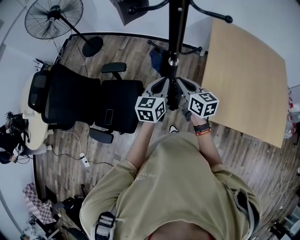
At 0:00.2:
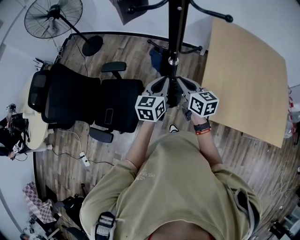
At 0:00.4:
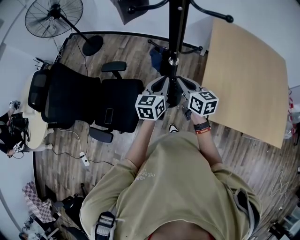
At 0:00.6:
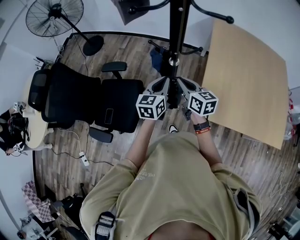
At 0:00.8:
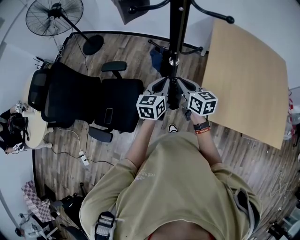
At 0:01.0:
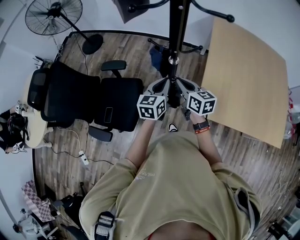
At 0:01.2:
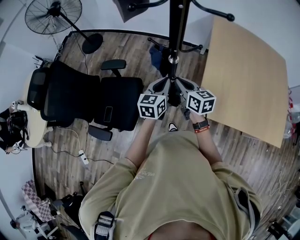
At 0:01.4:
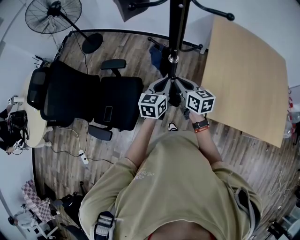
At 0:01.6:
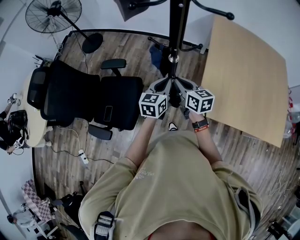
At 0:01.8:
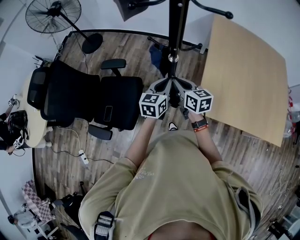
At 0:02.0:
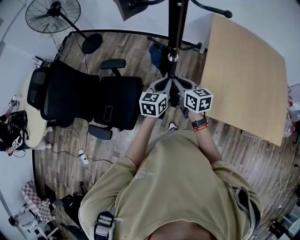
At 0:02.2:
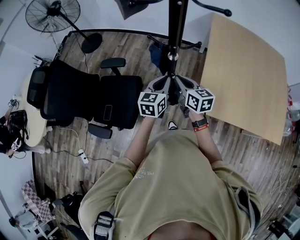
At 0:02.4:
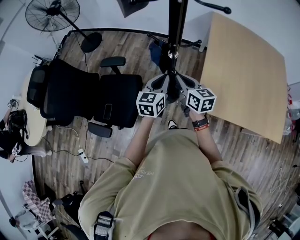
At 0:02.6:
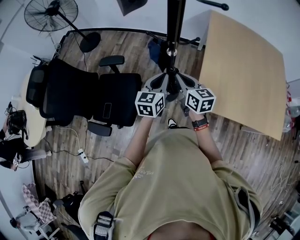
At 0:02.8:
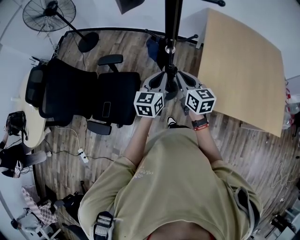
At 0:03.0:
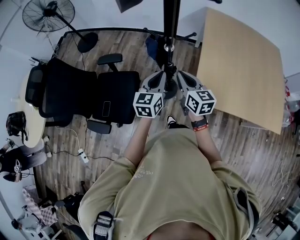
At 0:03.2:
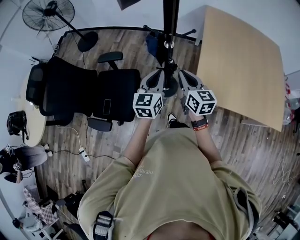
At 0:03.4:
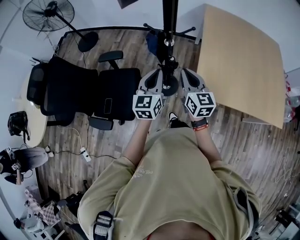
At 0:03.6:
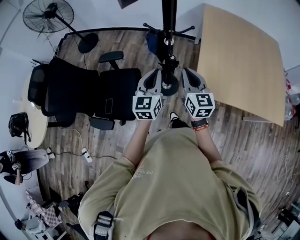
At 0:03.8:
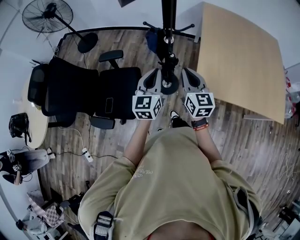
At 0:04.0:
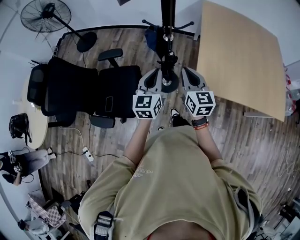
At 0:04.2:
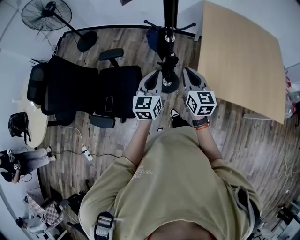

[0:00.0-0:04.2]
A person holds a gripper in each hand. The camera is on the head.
0:00.0 to 0:01.4: The grippers move only a little.
0:01.4 to 0:02.8: The left gripper changes place by roughly 5 cm; the right gripper moves about 5 cm.
0:02.8 to 0:04.2: The grippers both shift backward by about 10 cm.

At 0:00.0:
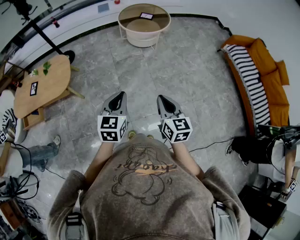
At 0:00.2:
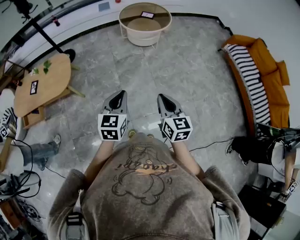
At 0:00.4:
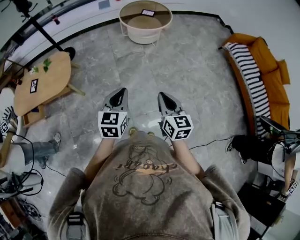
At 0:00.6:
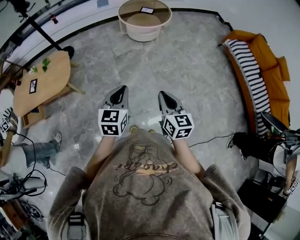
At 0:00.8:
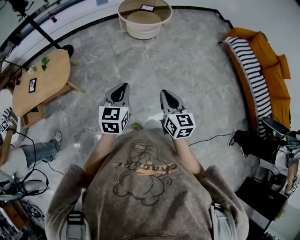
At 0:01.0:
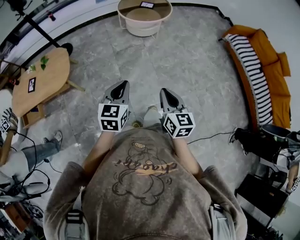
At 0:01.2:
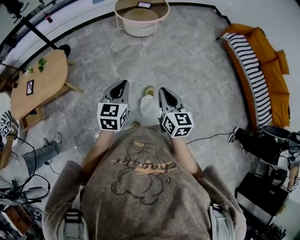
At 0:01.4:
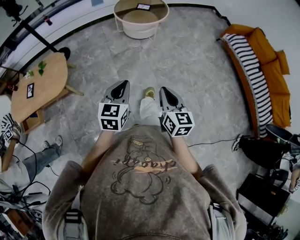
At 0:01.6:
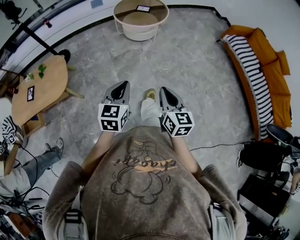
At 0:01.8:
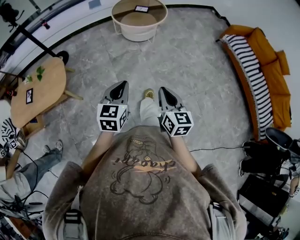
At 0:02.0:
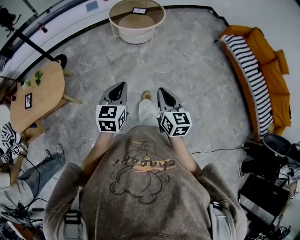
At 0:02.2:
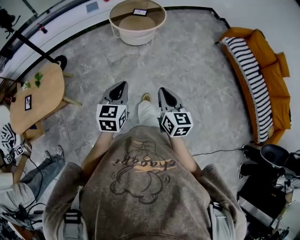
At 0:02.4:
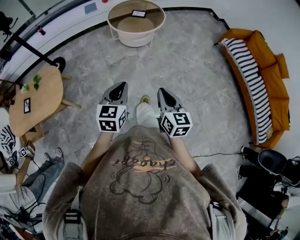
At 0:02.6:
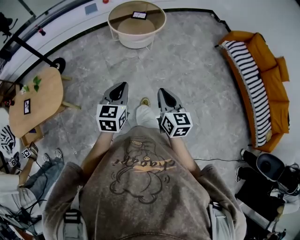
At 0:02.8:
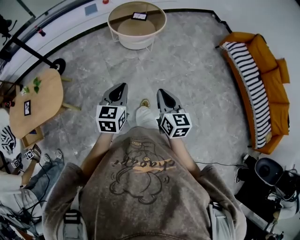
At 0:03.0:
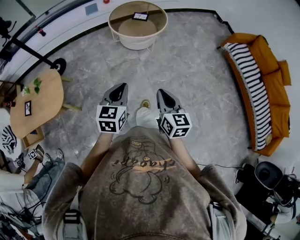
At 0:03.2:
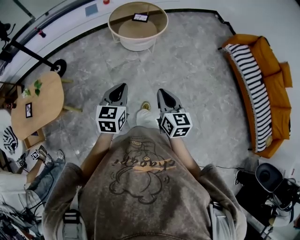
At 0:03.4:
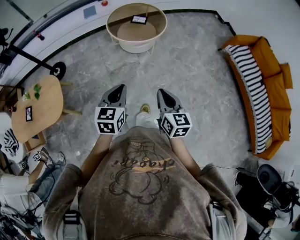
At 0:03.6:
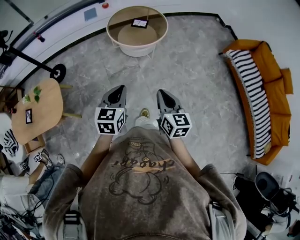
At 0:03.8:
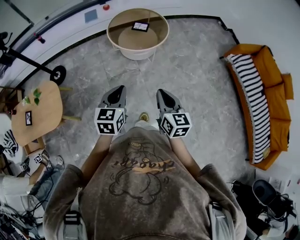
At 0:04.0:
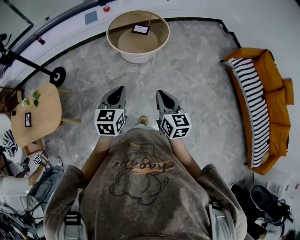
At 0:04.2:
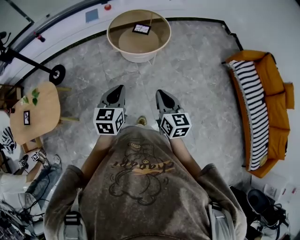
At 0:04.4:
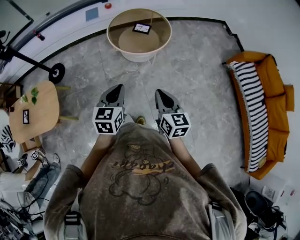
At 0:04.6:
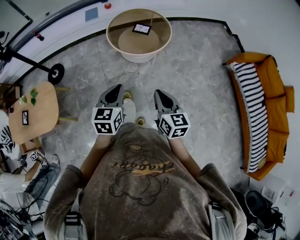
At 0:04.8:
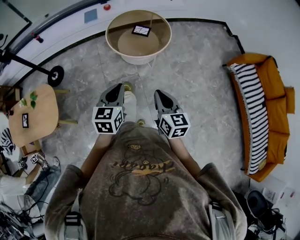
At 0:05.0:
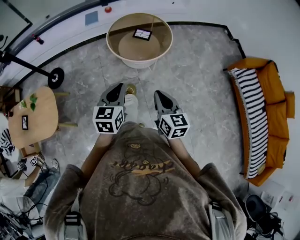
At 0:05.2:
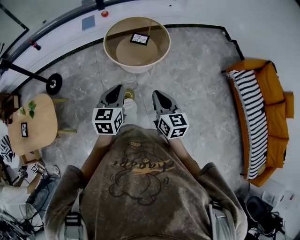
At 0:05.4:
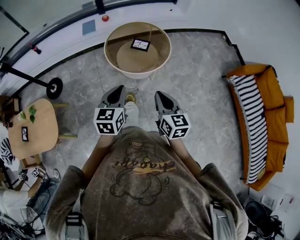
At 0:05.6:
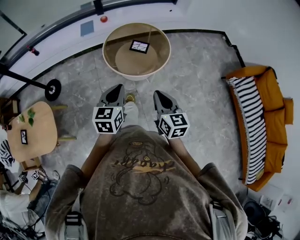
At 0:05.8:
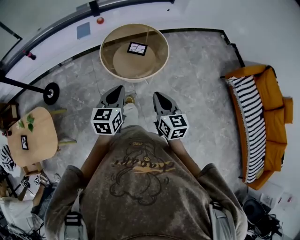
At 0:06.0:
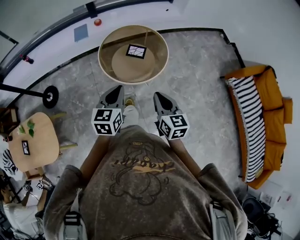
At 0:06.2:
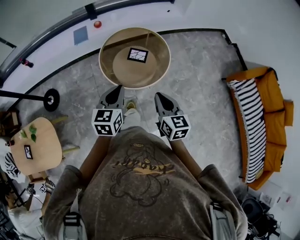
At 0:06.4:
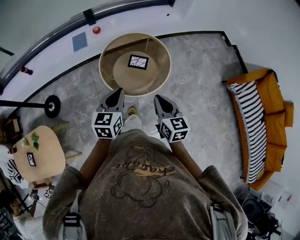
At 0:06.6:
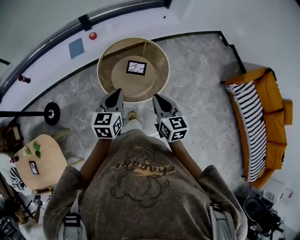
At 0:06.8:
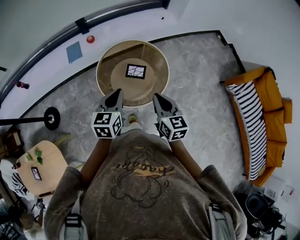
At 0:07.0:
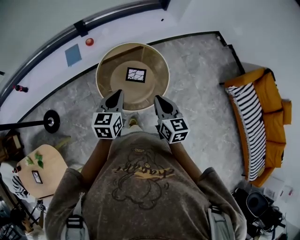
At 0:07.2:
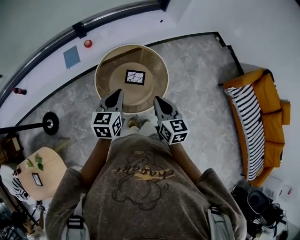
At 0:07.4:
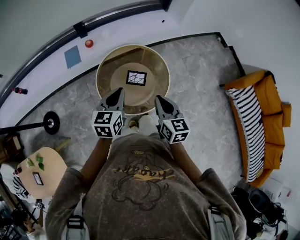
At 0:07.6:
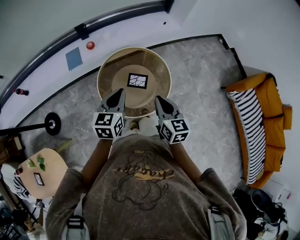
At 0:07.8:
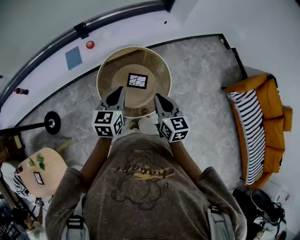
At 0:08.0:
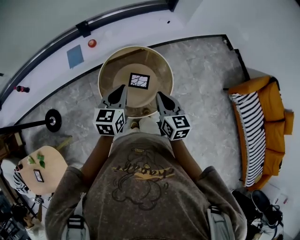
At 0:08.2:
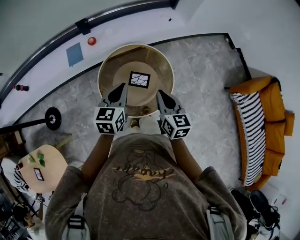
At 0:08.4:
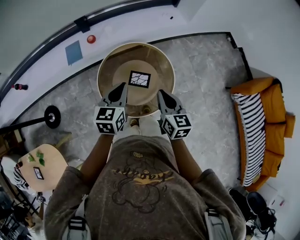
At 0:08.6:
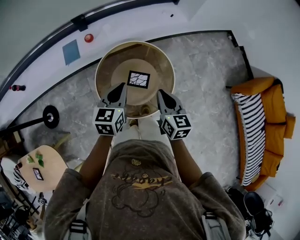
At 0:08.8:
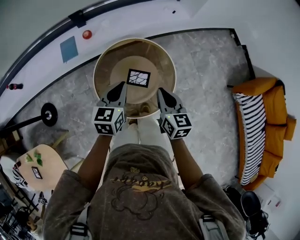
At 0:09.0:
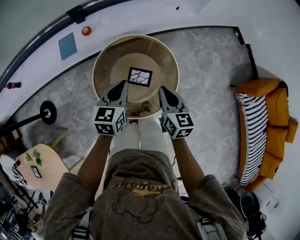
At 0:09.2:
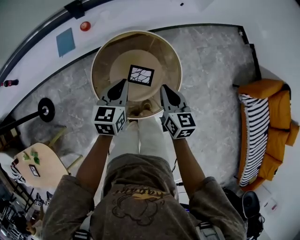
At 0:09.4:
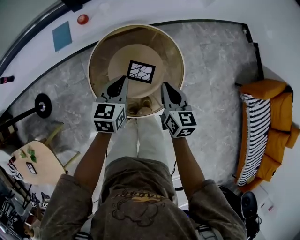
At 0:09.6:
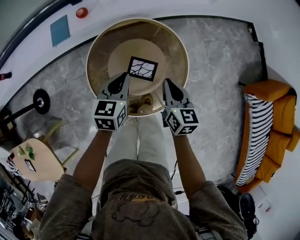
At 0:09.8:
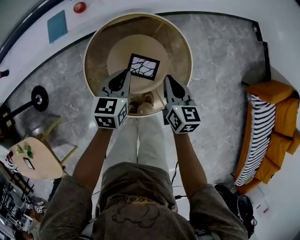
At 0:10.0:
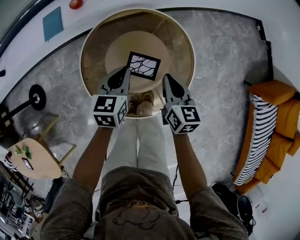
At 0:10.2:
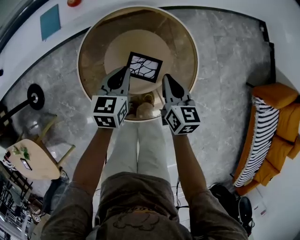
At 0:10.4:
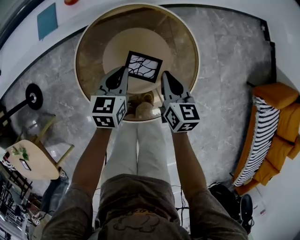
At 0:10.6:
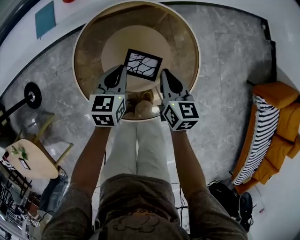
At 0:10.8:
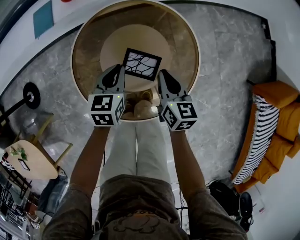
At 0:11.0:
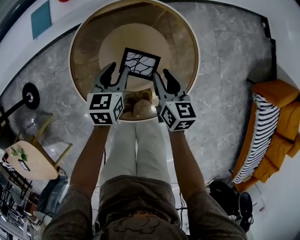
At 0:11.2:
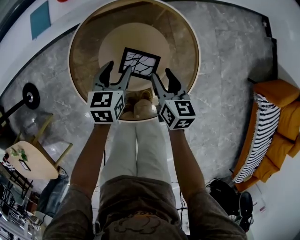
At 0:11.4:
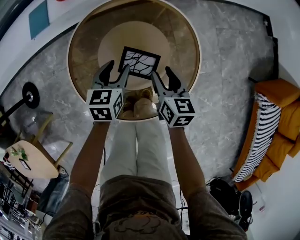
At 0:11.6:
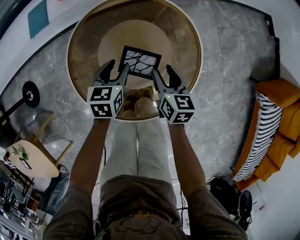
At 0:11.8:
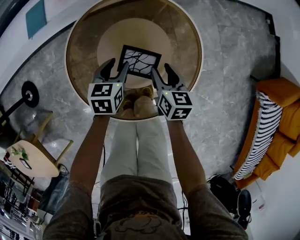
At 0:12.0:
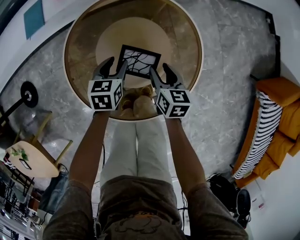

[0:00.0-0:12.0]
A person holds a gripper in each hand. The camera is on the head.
0:00.0 to 0:01.6: The left gripper heads forward, covering approximately 5 cm.
0:01.6 to 0:03.0: The two grippers go some 15 cm forward.
0:03.0 to 0:04.4: Both grippers travel together forward, approximately 20 cm.
0:04.4 to 0:06.0: Both grippers travel together forward, roughly 25 cm.
0:06.0 to 0:07.6: Both grippers move forward, about 25 cm.
0:07.6 to 0:09.0: The two grippers go some 15 cm forward and downward.
0:09.0 to 0:10.4: Both grippers move downward, approximately 20 cm.
0:10.4 to 0:12.0: Both grippers travel together downward, some 10 cm. The left gripper opens up; the right gripper opens up.

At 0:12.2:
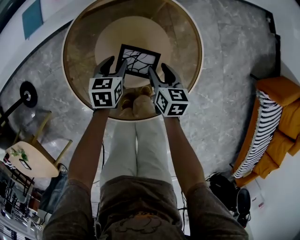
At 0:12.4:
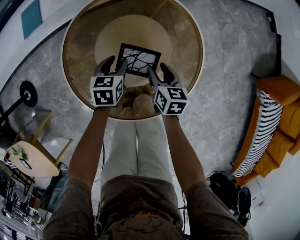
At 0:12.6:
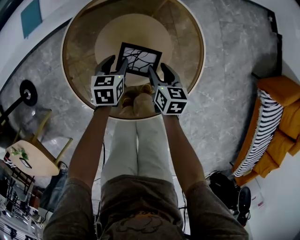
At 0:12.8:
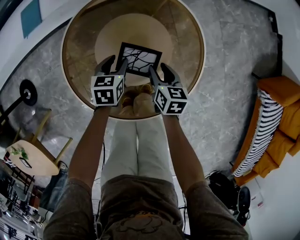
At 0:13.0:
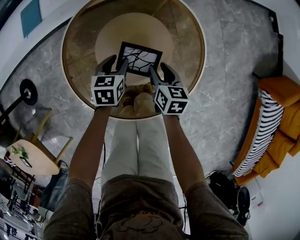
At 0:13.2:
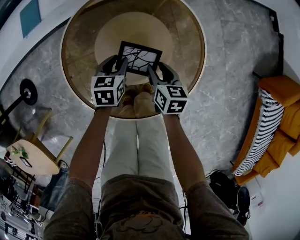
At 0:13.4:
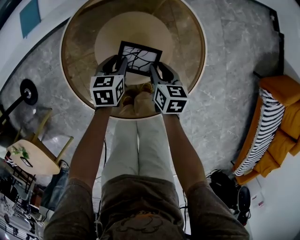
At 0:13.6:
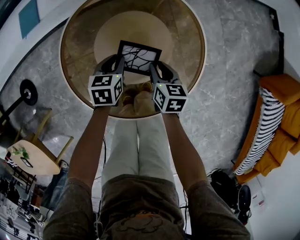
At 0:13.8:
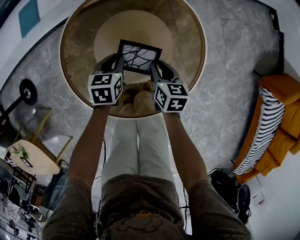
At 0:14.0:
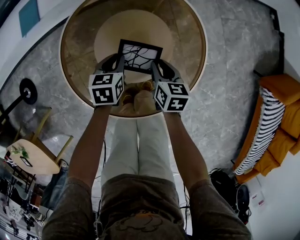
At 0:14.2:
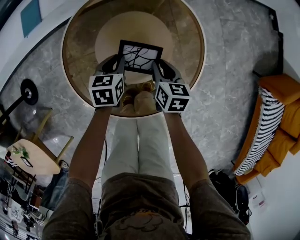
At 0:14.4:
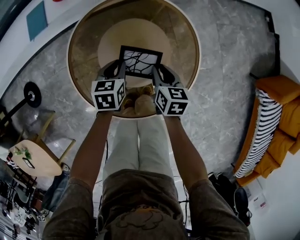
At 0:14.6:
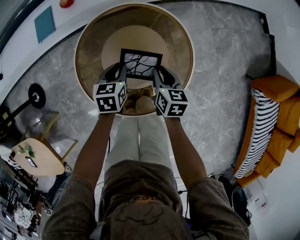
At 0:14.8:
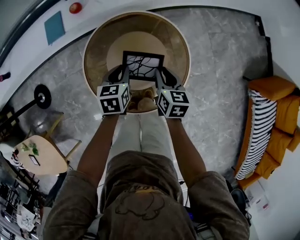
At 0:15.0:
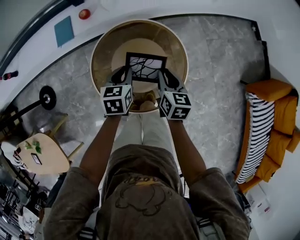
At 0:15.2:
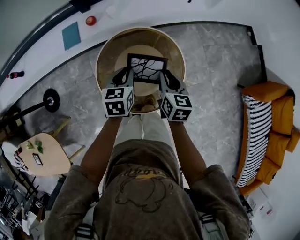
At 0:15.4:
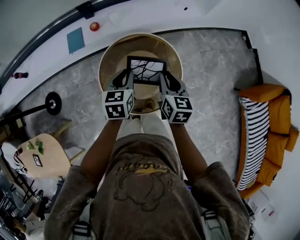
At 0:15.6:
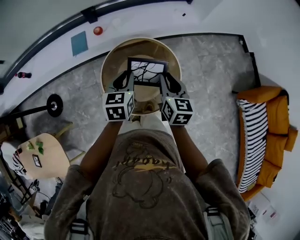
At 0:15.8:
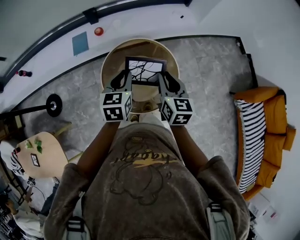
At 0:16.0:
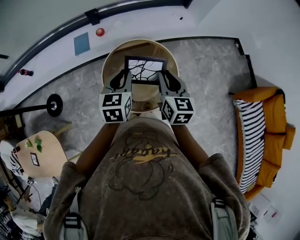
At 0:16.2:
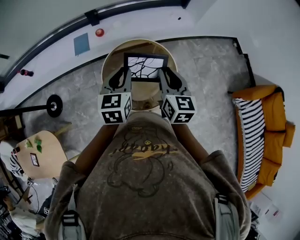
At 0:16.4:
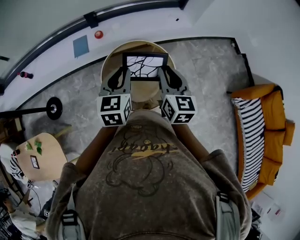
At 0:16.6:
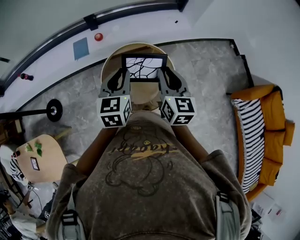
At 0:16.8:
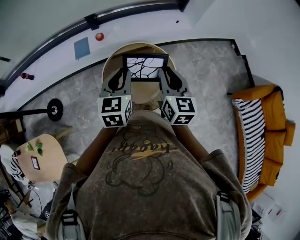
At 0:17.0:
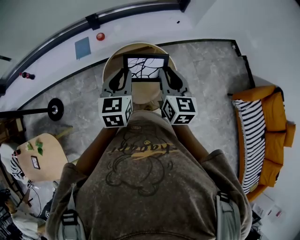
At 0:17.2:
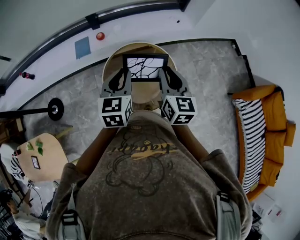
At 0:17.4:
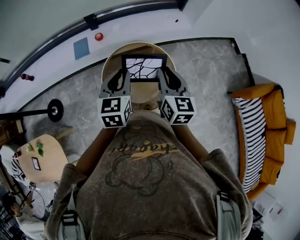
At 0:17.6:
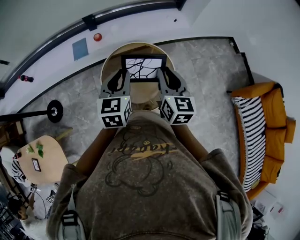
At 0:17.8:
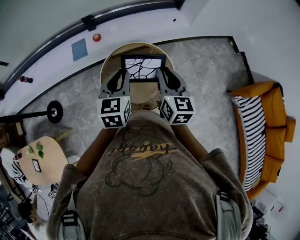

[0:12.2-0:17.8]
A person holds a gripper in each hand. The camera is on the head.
0:12.2 to 0:13.6: The right gripper closes; the left gripper closes its fingers.
0:13.6 to 0:15.0: The grippers both shift upward by about 25 cm.
0:15.0 to 0:16.4: Both grippers travel together upward, about 25 cm. The right gripper turns by roughly 20 degrees. The left gripper changes its angle by about 30 degrees.
0:16.4 to 0:17.8: The two grippers keep their place.

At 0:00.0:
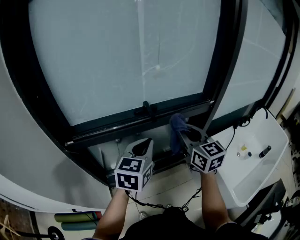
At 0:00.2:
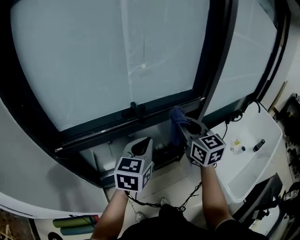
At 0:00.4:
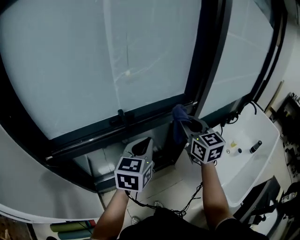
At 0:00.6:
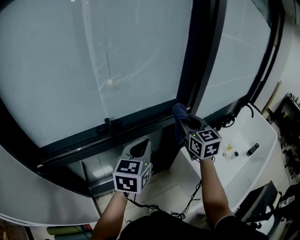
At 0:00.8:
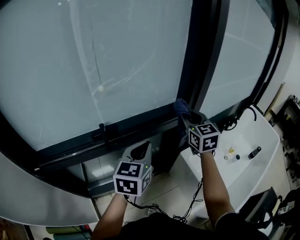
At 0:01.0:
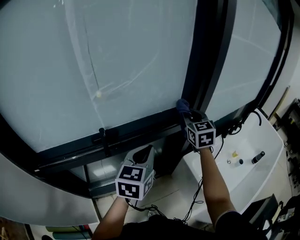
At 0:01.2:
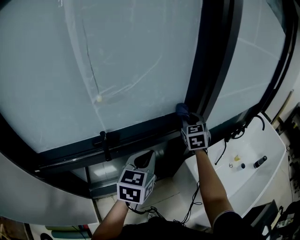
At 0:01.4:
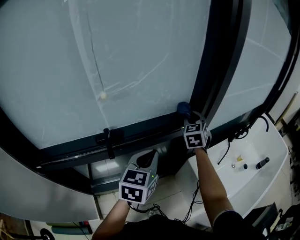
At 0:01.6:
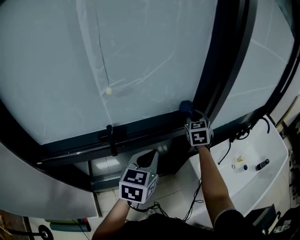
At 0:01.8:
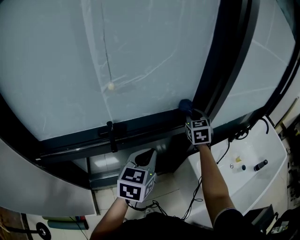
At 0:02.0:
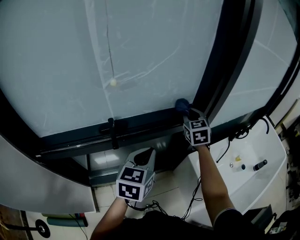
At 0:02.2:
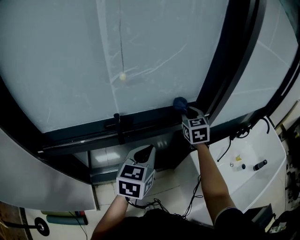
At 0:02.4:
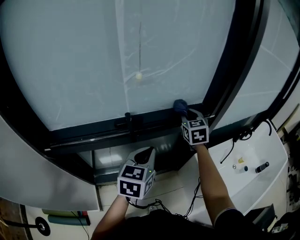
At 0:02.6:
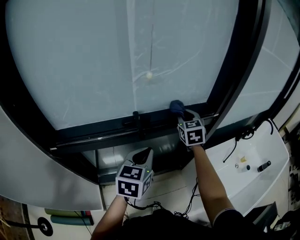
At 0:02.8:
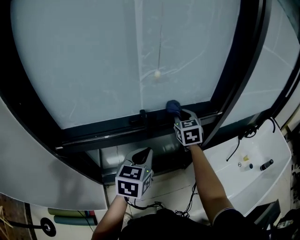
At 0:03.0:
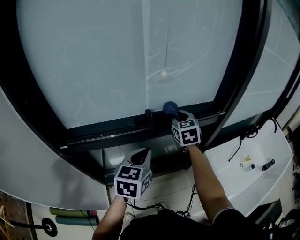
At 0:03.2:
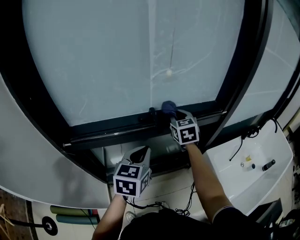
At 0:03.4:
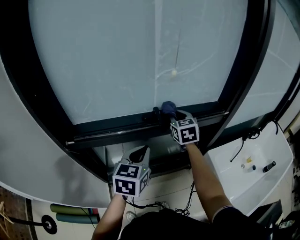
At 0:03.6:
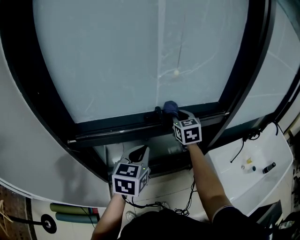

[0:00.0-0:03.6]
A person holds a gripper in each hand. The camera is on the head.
0:00.0 to 0:01.8: The right gripper heads forward and to the right, covering roughly 35 cm, and rotates roughly 30 degrees. The left gripper travels forward and to the right by approximately 20 cm.
0:01.8 to 0:03.6: Both grippers travel together to the left and backward, roughly 25 cm.
